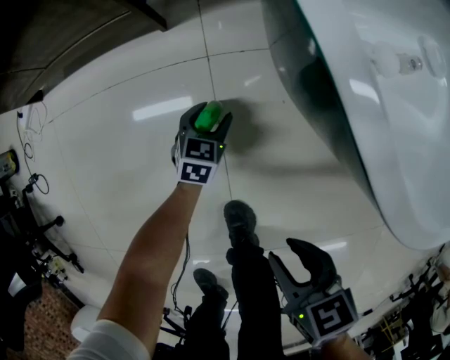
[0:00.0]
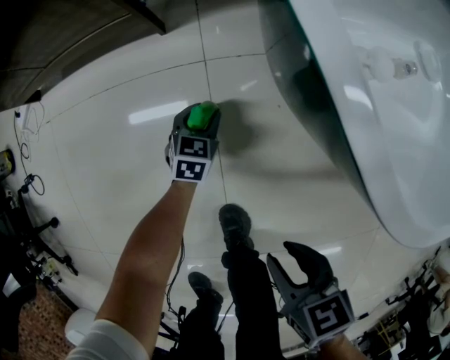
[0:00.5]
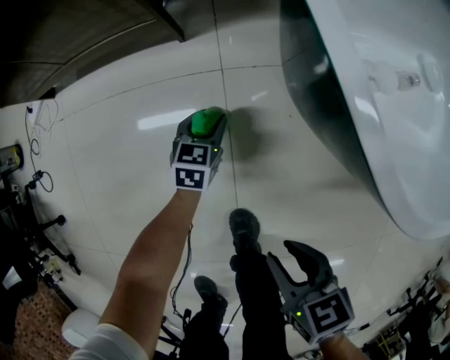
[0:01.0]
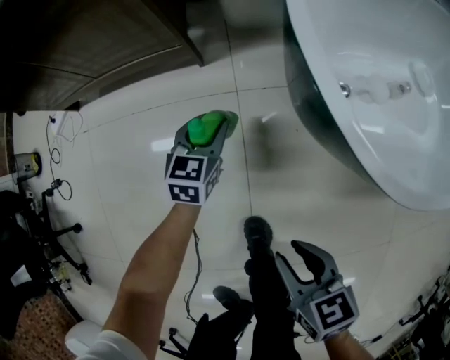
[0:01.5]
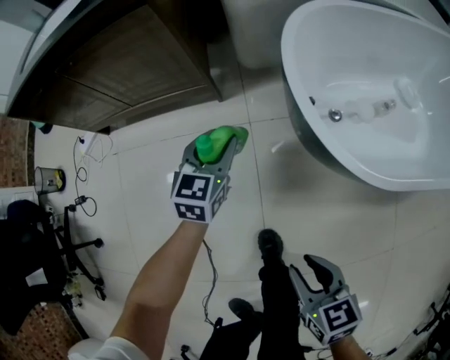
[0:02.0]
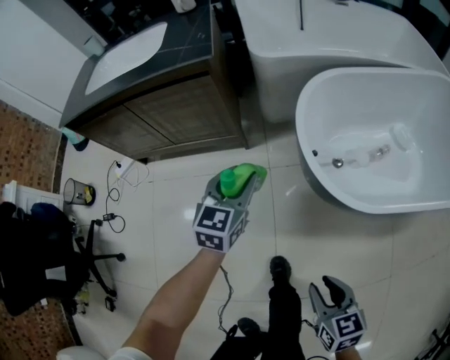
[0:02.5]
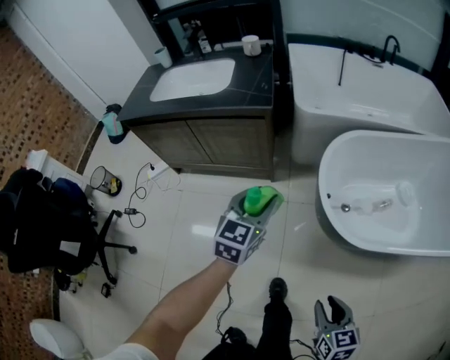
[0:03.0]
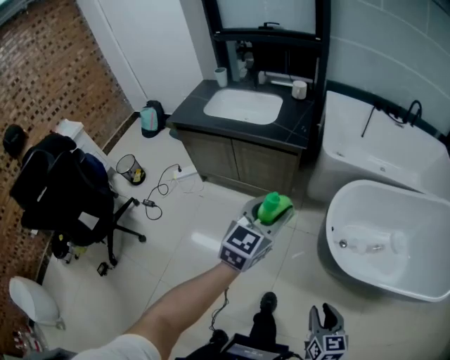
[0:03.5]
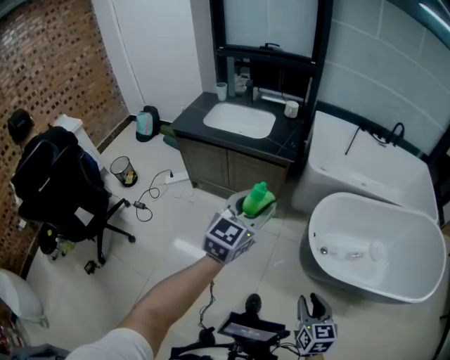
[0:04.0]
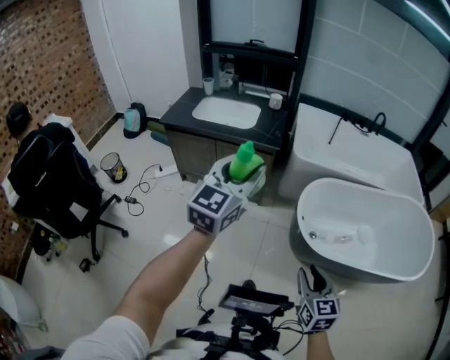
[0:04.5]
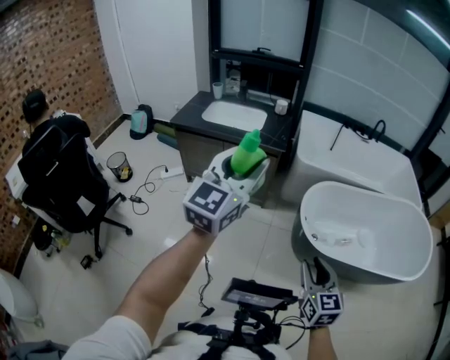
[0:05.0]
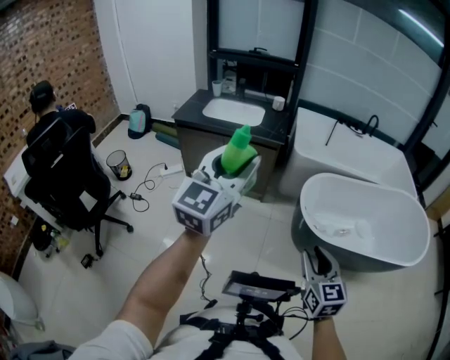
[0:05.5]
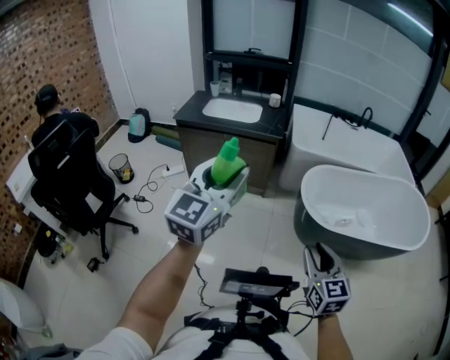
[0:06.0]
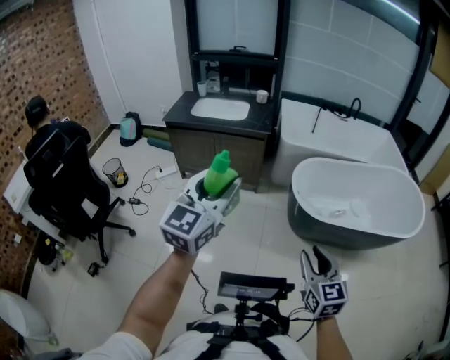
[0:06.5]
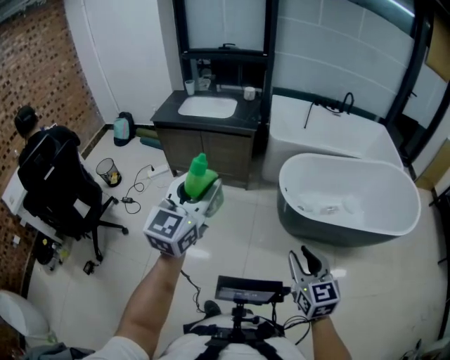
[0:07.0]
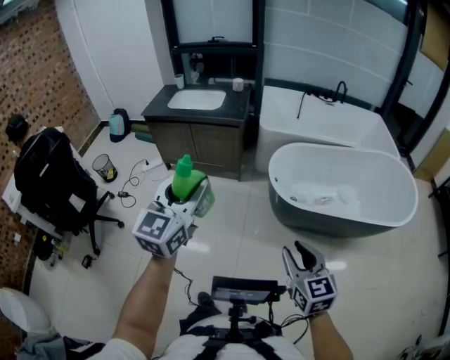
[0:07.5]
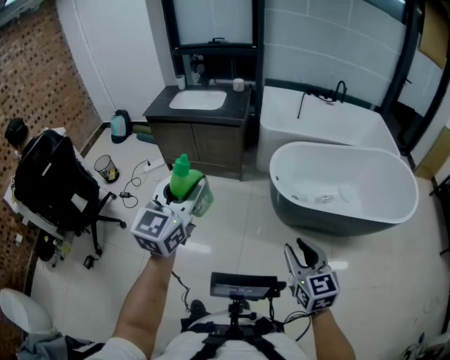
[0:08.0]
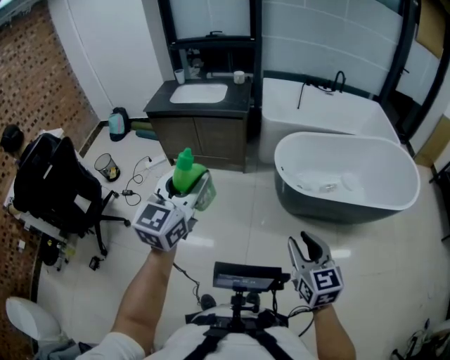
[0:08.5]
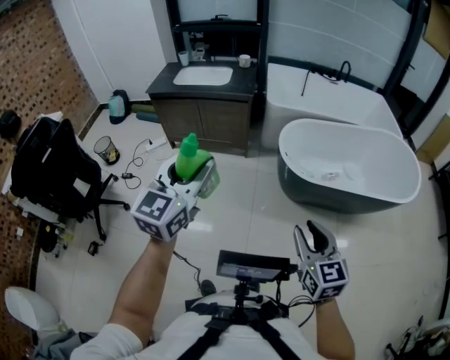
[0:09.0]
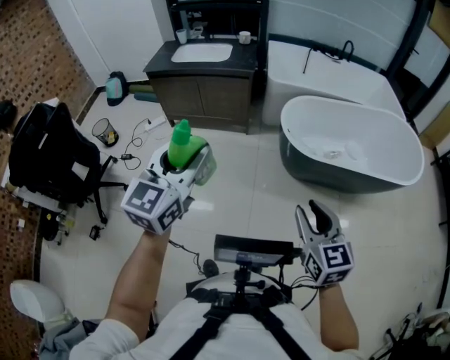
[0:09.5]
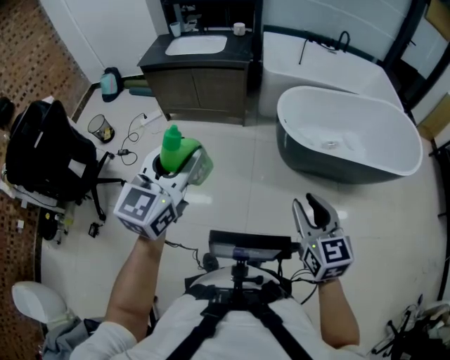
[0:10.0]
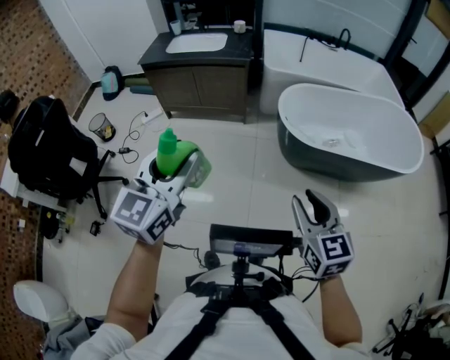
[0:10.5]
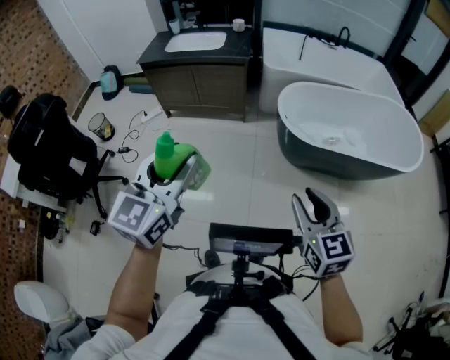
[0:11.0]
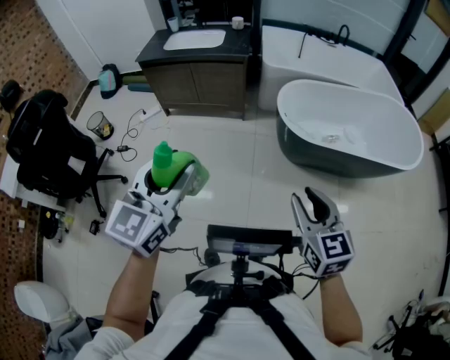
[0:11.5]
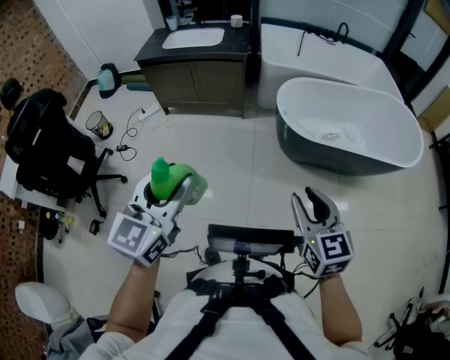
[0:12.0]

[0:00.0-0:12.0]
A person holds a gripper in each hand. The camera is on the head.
0:00.0 to 0:02.0: The left gripper is displaced upward by some 30 cm, and swivels some 20 degrees. Meanwhile the right gripper is displaced upward by roughly 15 cm.
0:02.0 to 0:04.0: The left gripper moves upward, some 60 cm, and turns by some 20 degrees. The right gripper moves upward, about 35 cm, and turns by some 20 degrees.
0:04.0 to 0:06.0: Both grippers move backward and upward, some 25 cm.
0:06.0 to 0:08.0: Both grippers move to the right and backward, roughly 15 cm.
0:08.0 to 0:10.0: The left gripper moves backward and to the left, some 10 cm. The right gripper moves to the left, approximately 5 cm.
0:10.0 to 0:12.0: The left gripper heads backward, covering about 5 cm.

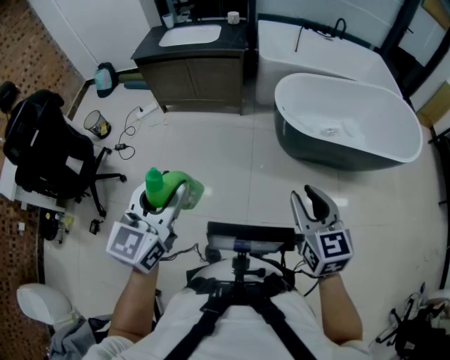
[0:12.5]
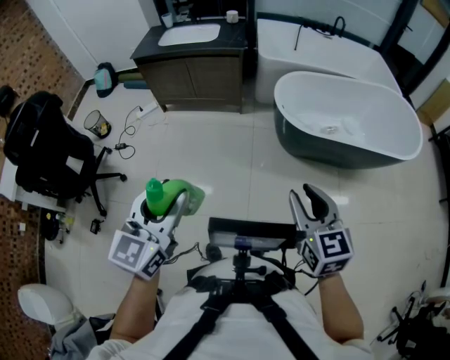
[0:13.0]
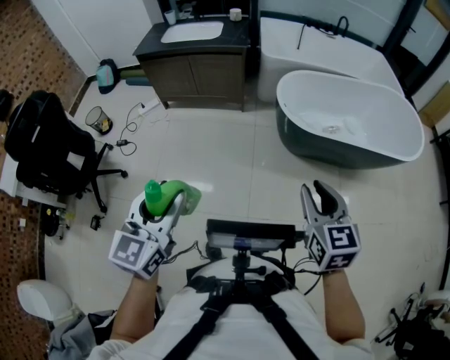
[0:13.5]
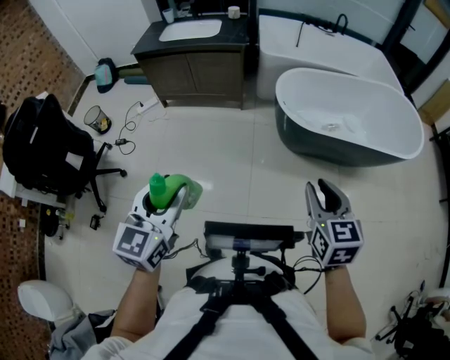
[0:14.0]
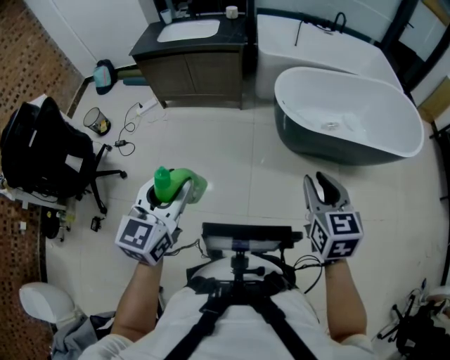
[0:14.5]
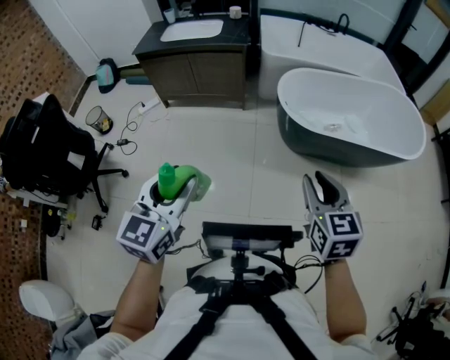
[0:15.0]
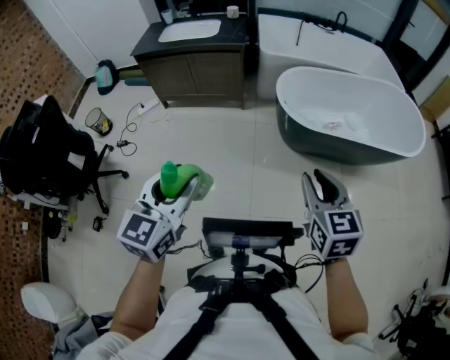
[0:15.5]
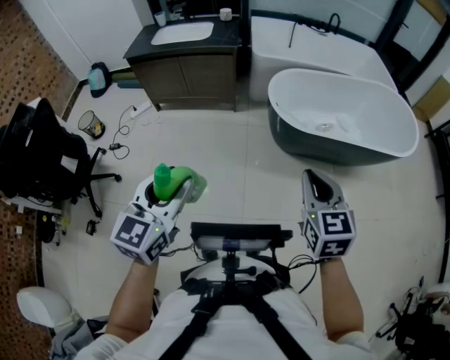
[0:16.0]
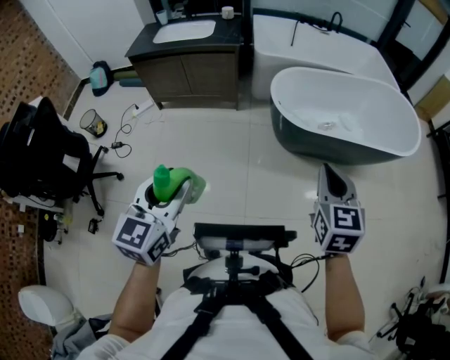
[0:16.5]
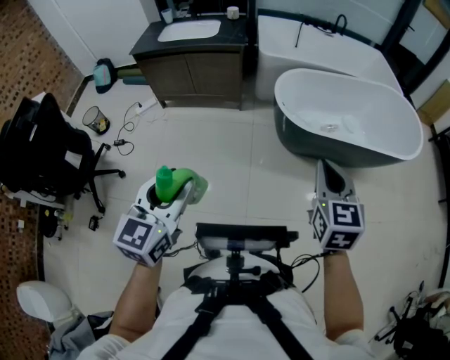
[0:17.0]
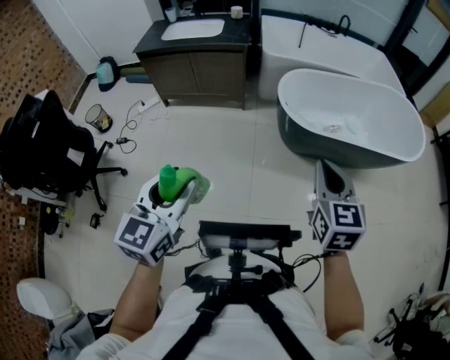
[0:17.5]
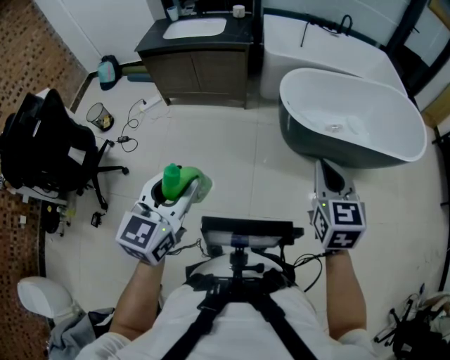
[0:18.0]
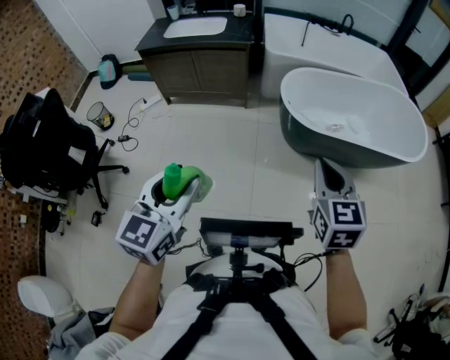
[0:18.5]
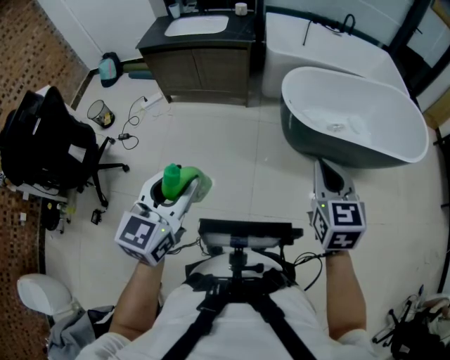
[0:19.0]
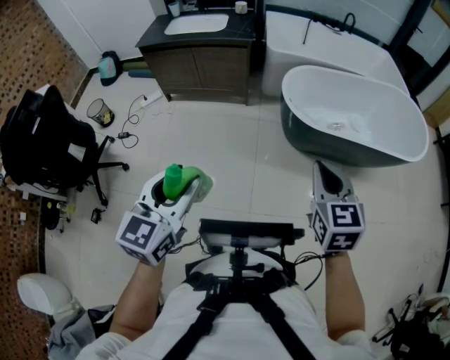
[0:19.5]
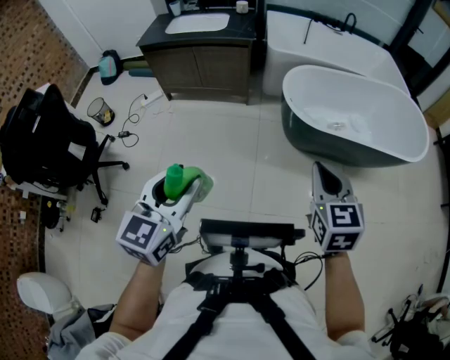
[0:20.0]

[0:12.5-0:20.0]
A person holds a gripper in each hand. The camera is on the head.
0:12.5 to 0:14.5: The grippers stay close to where they were, moving slightly.
0:14.5 to 0:16.5: The right gripper closes.
0:16.5 to 0:20.0: The grippers make only small movements.

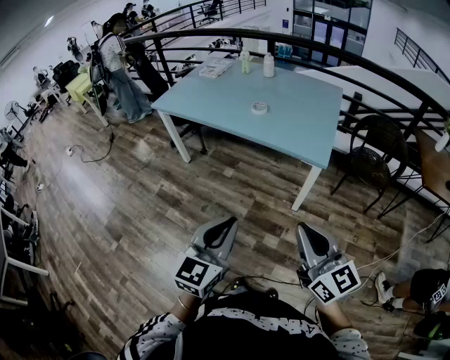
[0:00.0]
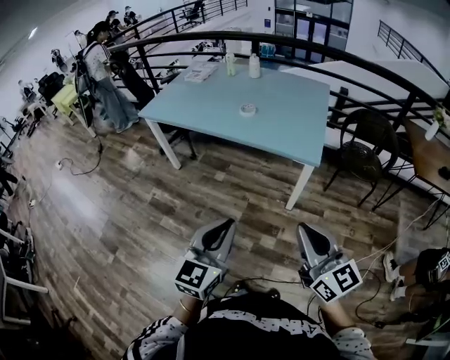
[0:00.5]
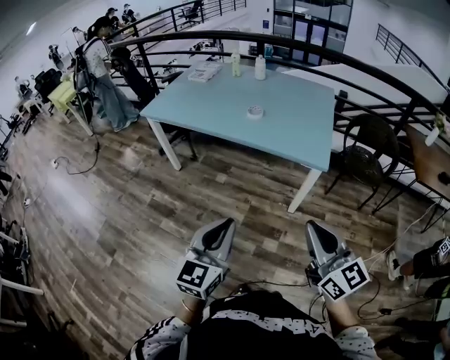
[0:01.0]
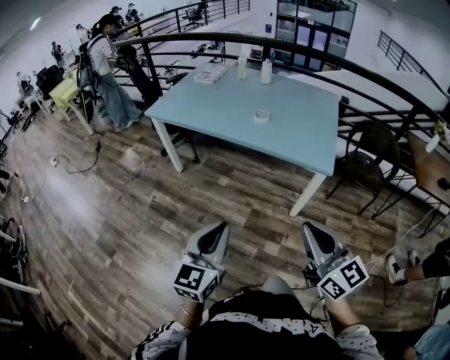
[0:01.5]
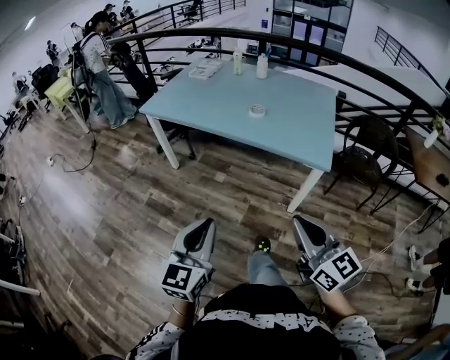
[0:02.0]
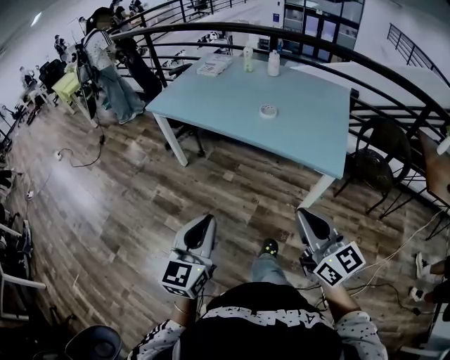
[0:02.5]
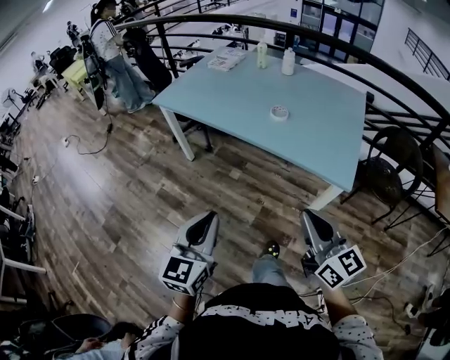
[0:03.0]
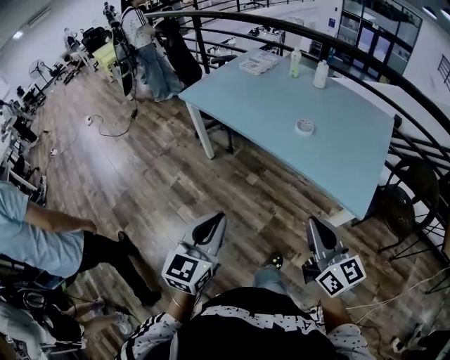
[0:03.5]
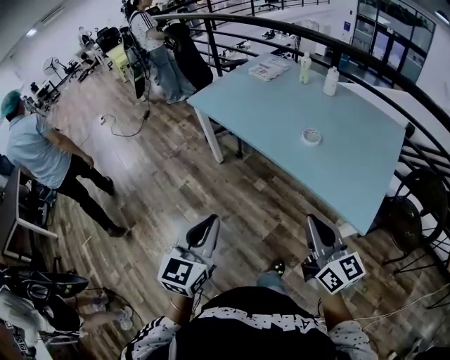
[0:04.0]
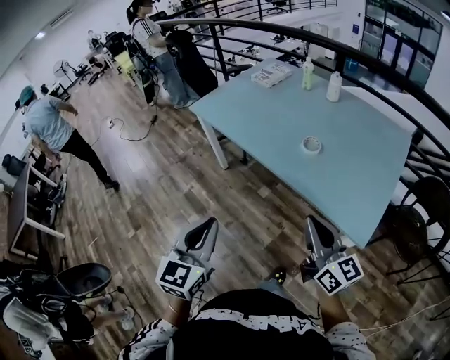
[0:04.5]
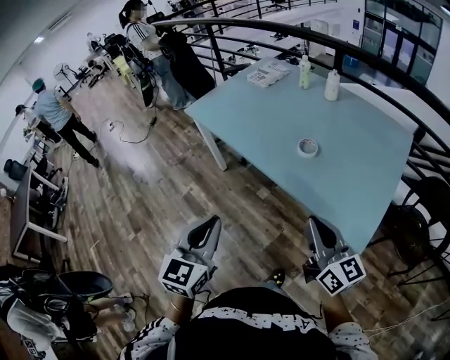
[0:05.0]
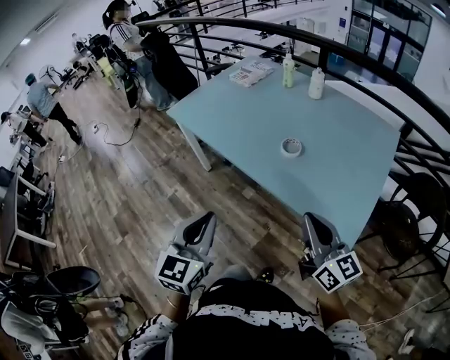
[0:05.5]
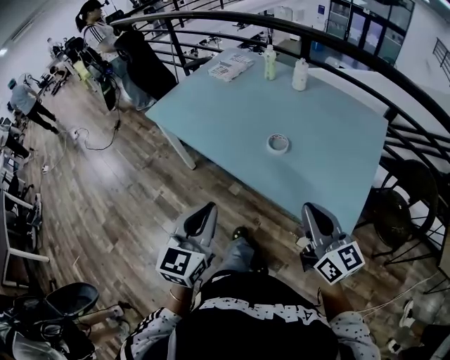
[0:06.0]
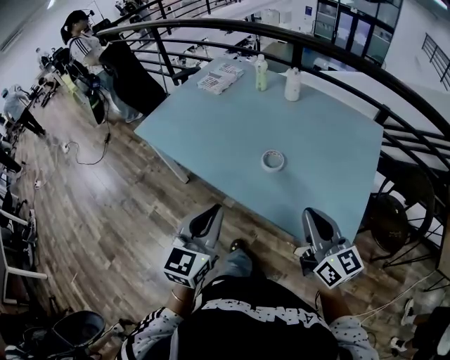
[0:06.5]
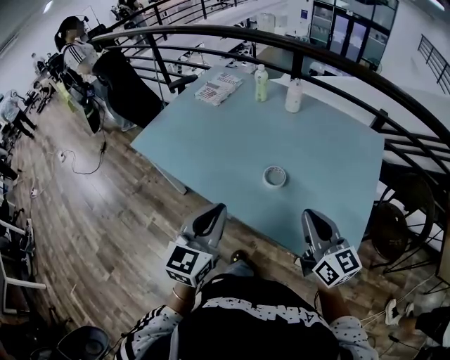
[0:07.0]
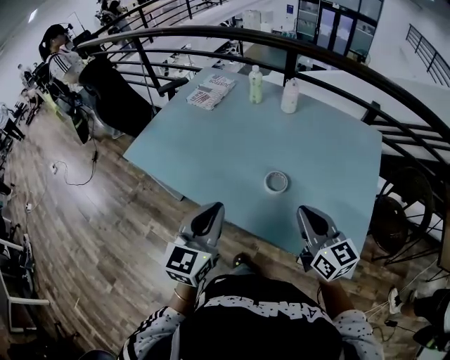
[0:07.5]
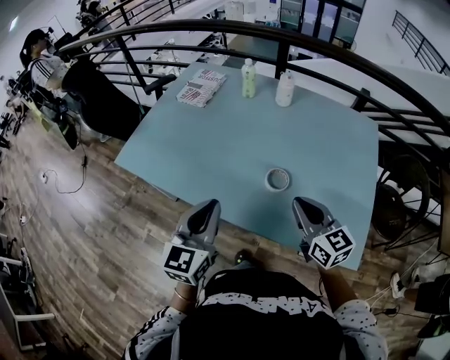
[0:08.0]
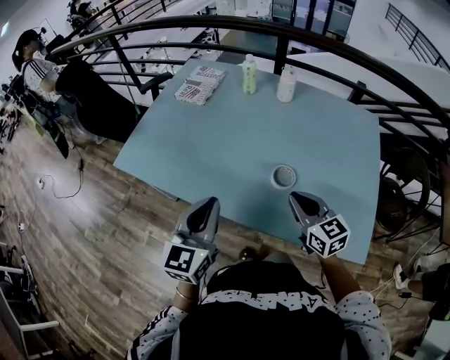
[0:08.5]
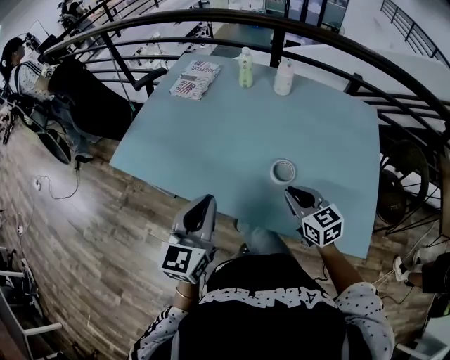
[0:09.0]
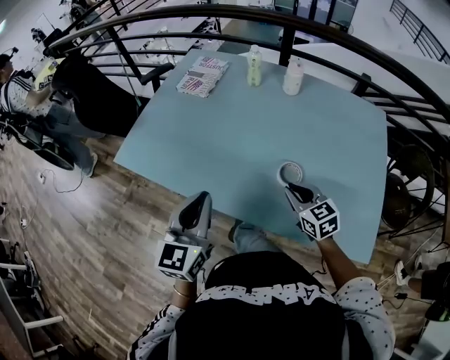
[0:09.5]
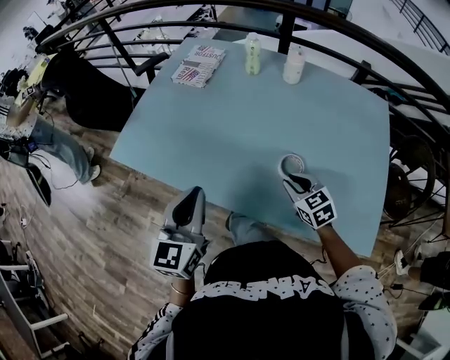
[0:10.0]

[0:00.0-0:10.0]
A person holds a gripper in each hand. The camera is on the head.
0:00.0 to 0:02.0: The two grippers go approximately 15 cm to the left and forward.
0:02.0 to 0:04.0: Both grippers move forward, some 20 cm.
0:04.0 to 0:06.0: The grippers both shift forward and to the right by some 20 cm.
0:06.0 to 0:08.0: The two grippers go approximately 25 cm forward.
0:08.0 to 0:10.0: The right gripper shifts approximately 20 cm downward and forward, and rotates about 30 degrees. Meanwhile the left gripper moves to the left and forward, roughly 10 cm.
